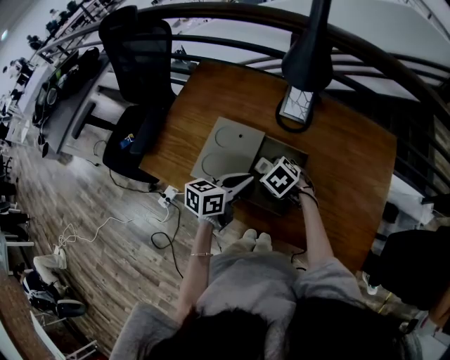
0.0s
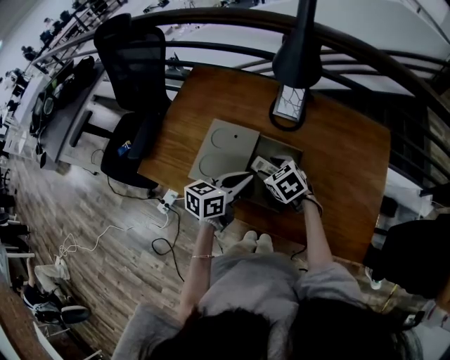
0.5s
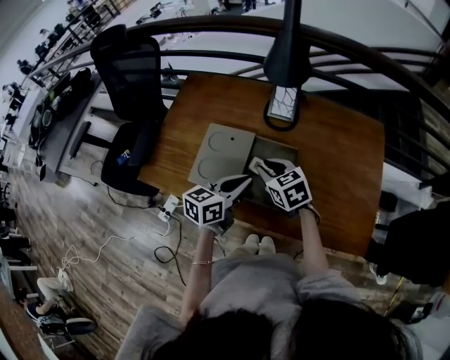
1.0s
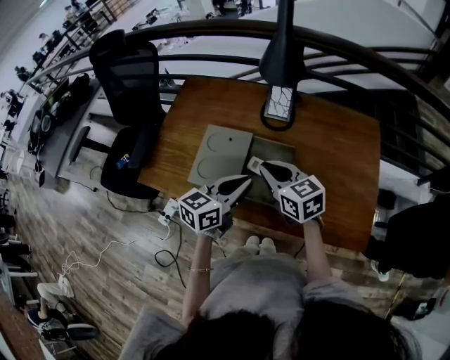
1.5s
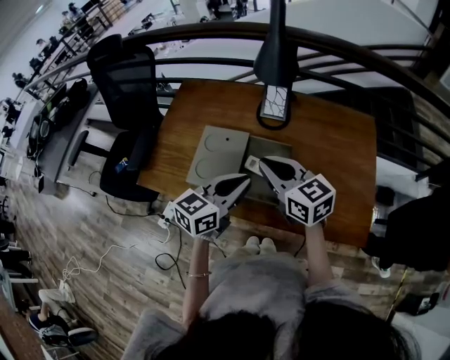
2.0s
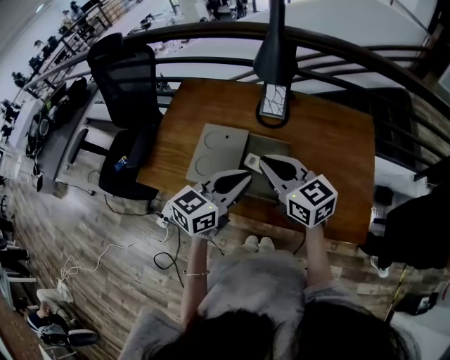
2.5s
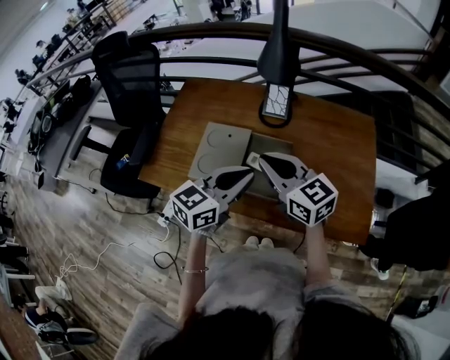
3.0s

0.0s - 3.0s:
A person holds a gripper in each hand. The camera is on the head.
0.0s - 1.5s: The left gripper is displaced upward by roughly 5 cm. The right gripper is displaced upward by some 15 cm, tips its fingers upward by approximately 40 degrees, and closes.
1.5s - 3.0s: Both grippers travel together upward, about 5 cm.

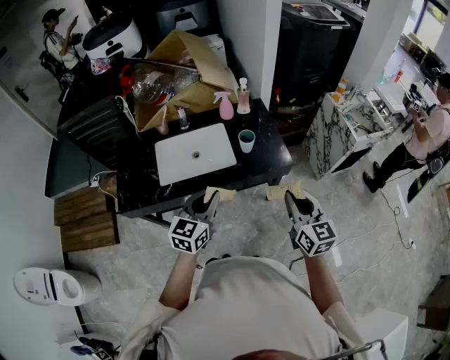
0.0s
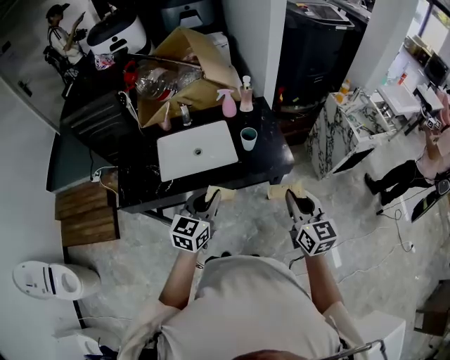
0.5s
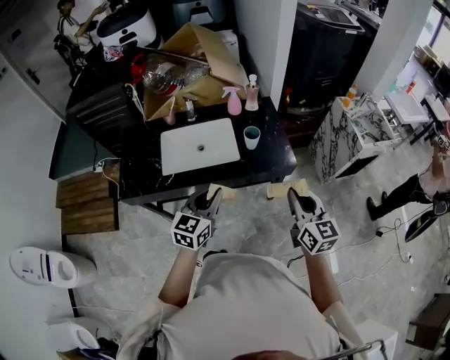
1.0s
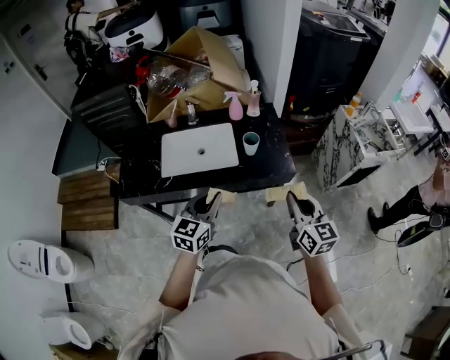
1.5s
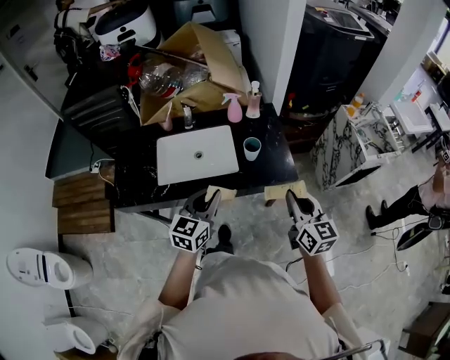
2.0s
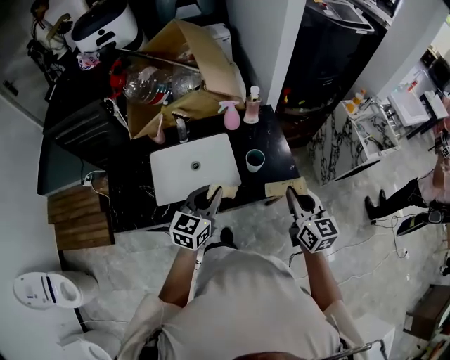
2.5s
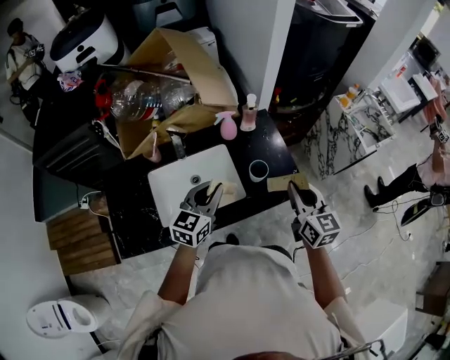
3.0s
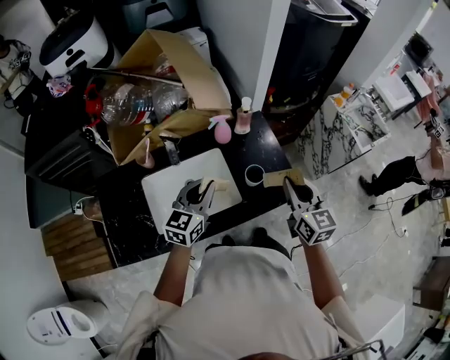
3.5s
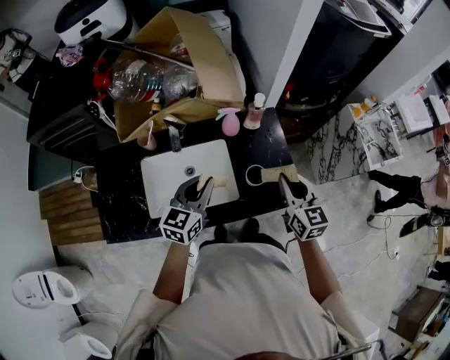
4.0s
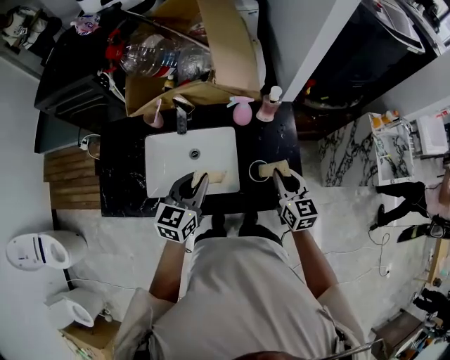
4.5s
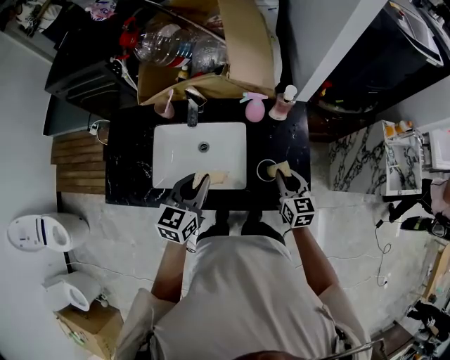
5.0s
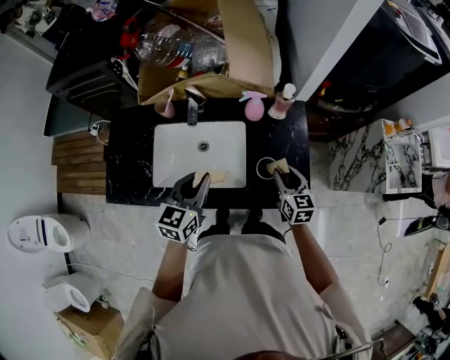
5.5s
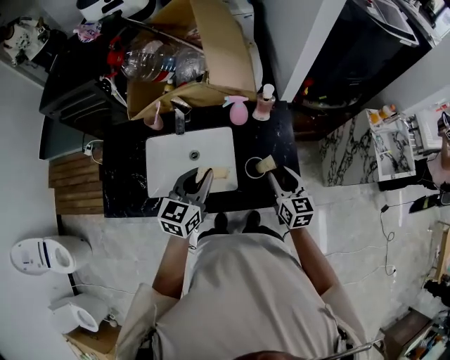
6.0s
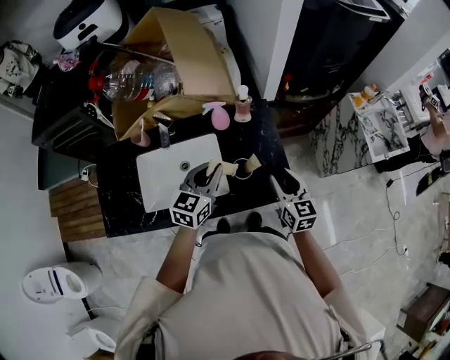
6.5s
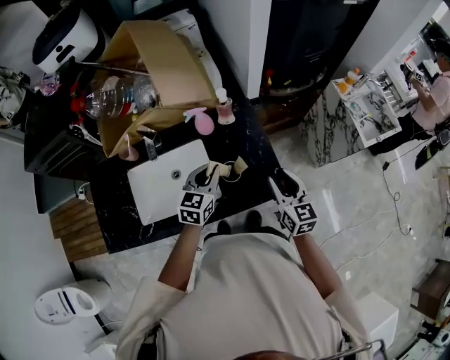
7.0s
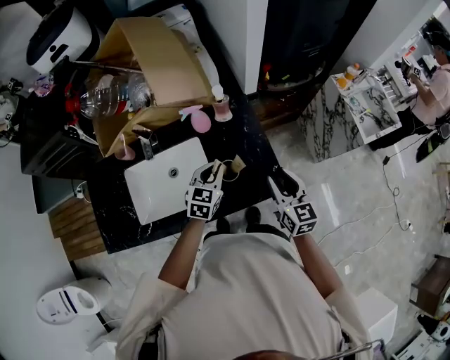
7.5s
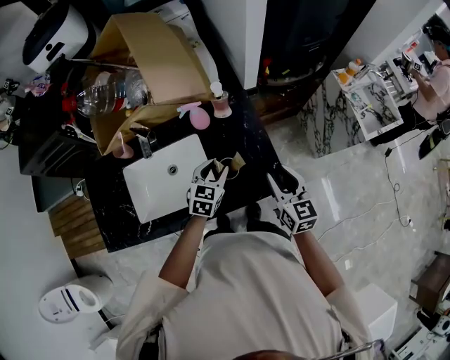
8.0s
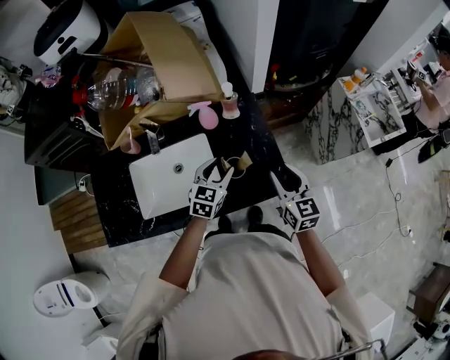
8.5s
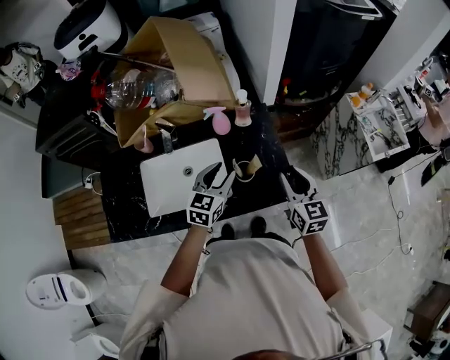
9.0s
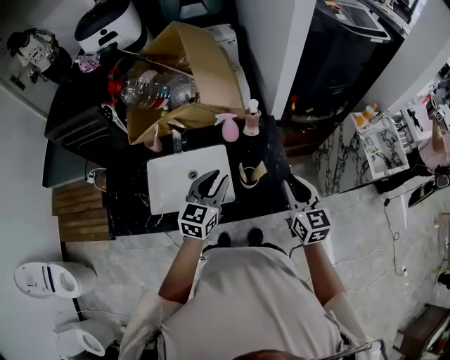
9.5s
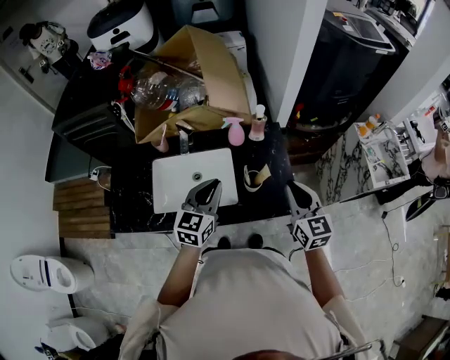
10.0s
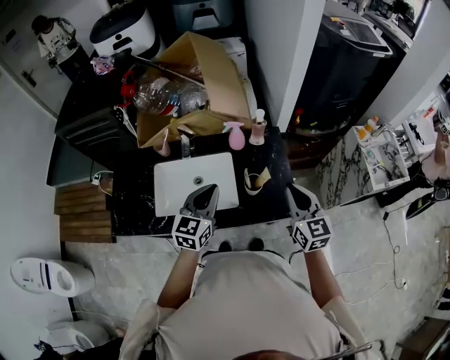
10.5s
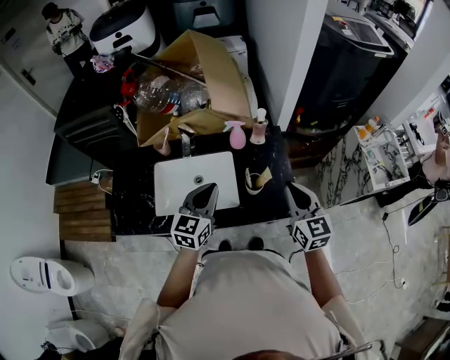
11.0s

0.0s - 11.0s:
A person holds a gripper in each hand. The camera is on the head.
0.0s - 2.0s: Both grippers travel together forward, some 5 cm.
2.0s - 3.5s: The right gripper is displaced forward and to the left by approximately 20 cm. Meanwhile the left gripper moves forward, roughly 20 cm.
3.5s - 5.5s: The right gripper heads downward and forward, covering roughly 20 cm, turns by approximately 20 degrees, and opens. Meanwhile the left gripper moves some 5 cm, and turns by some 20 degrees.
5.5s - 7.5s: The left gripper moves to the right, downward and forward, approximately 20 cm, and swivels some 20 degrees. The right gripper travels to the right and upward by about 15 cm.
7.5s - 9.0s: The left gripper is displaced upward by about 5 cm, and opens up.
9.0s - 11.0s: The left gripper moves upward, to the left and backward, roughly 15 cm, and closes up; the right gripper moves upward, roughly 5 cm, and closes.

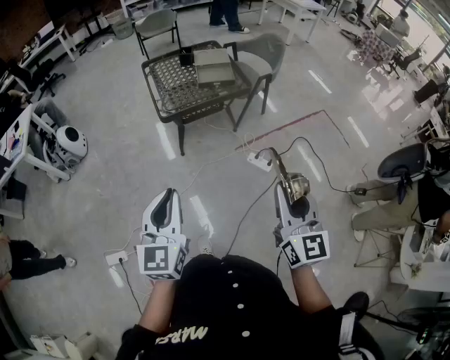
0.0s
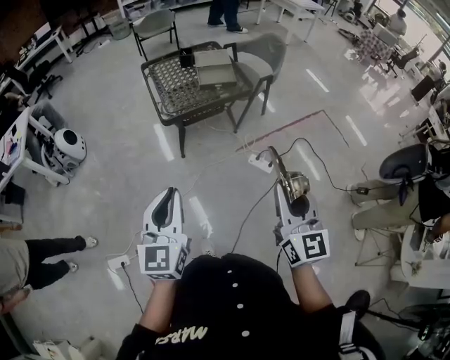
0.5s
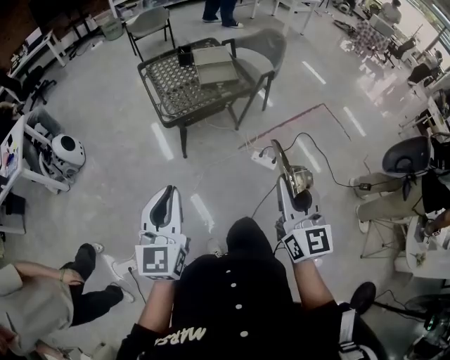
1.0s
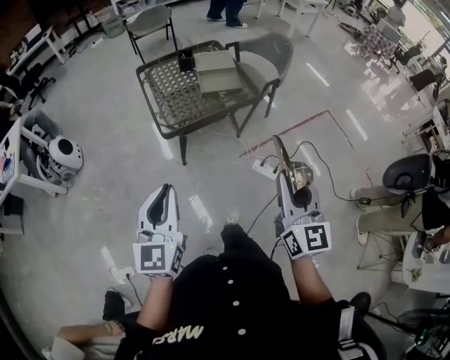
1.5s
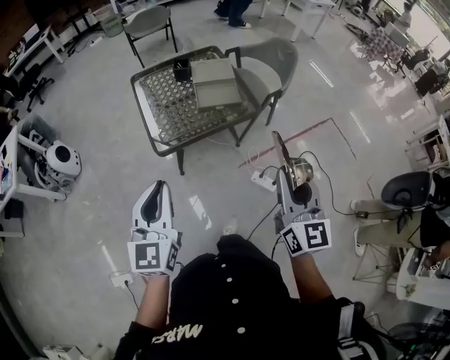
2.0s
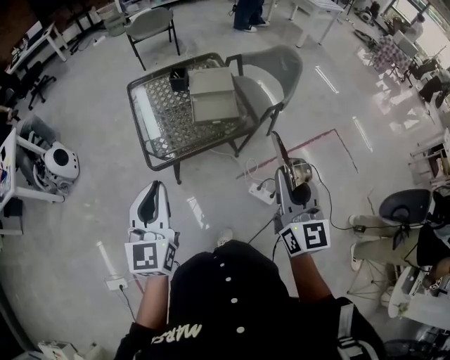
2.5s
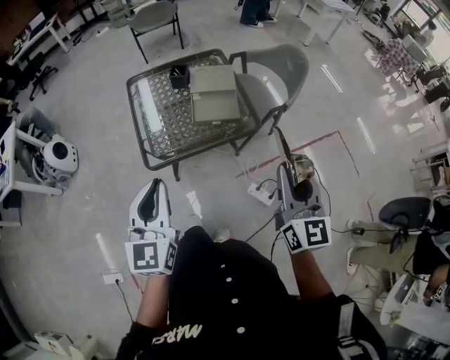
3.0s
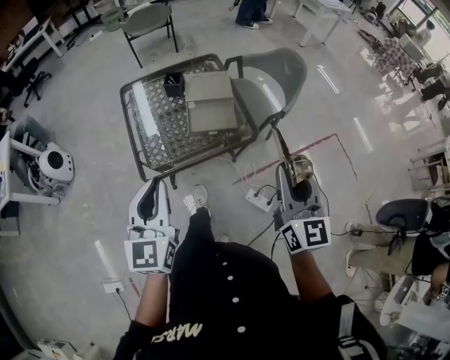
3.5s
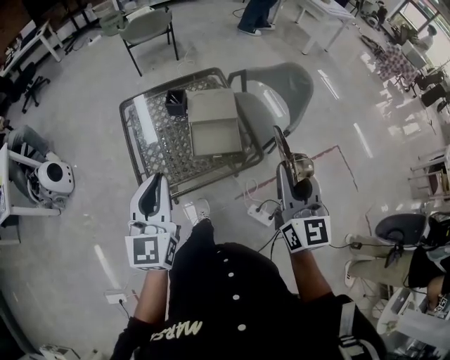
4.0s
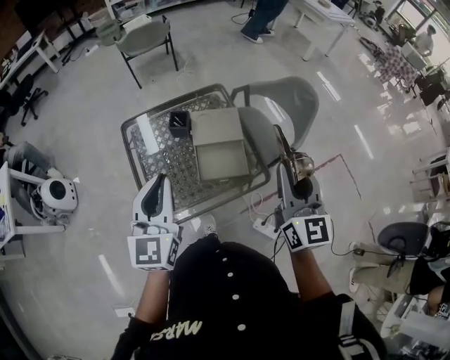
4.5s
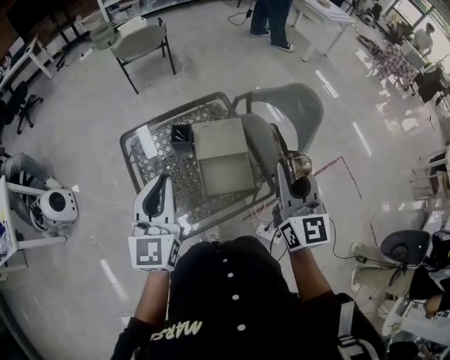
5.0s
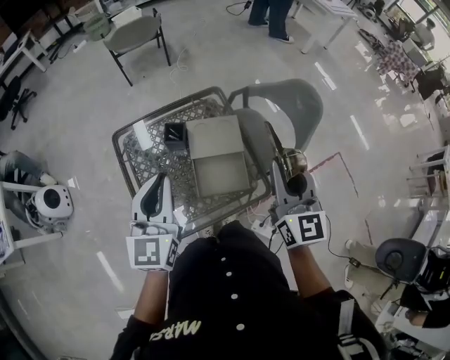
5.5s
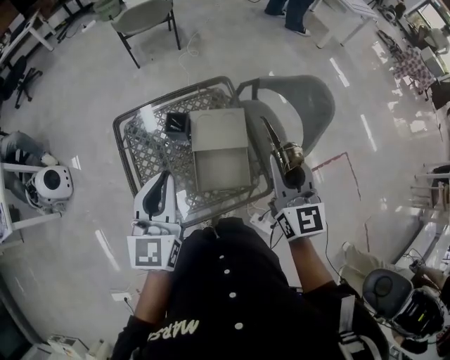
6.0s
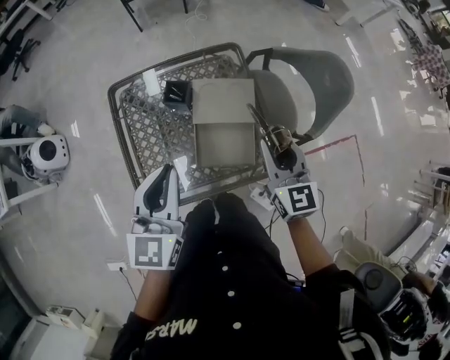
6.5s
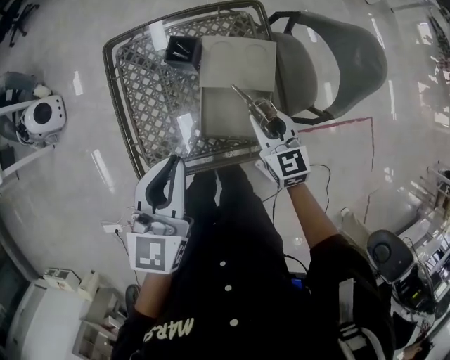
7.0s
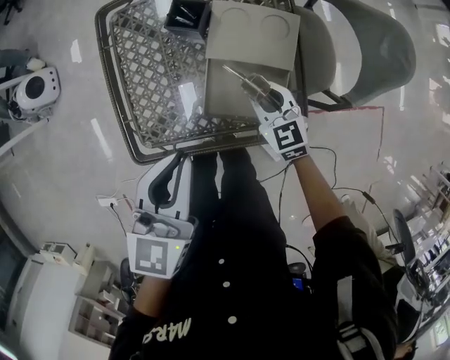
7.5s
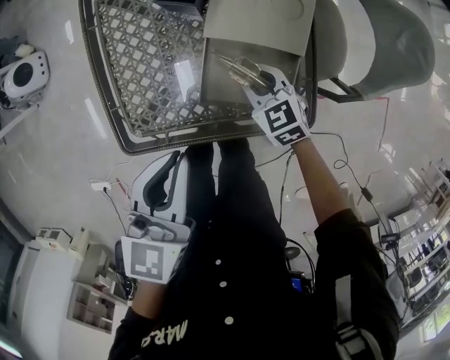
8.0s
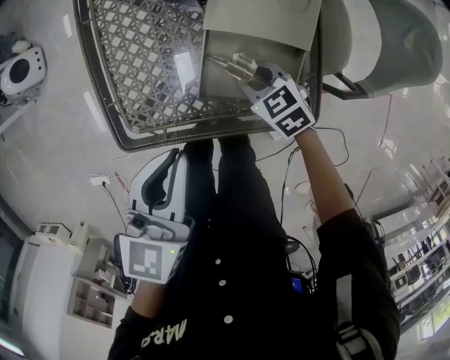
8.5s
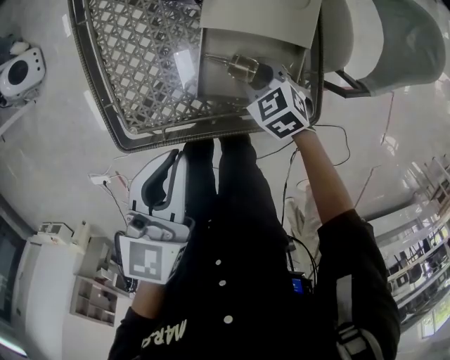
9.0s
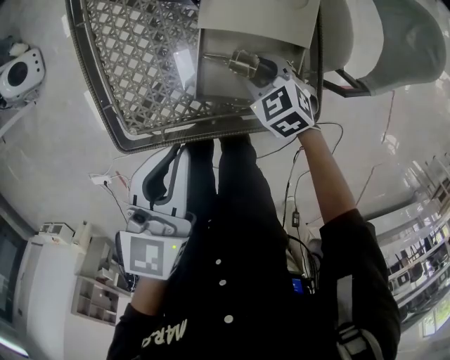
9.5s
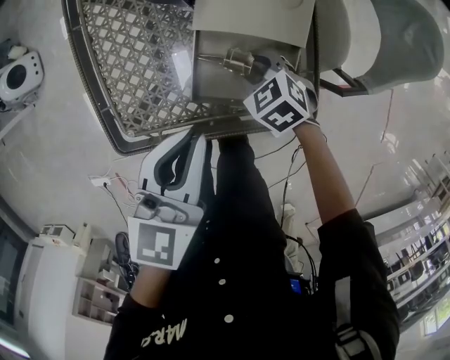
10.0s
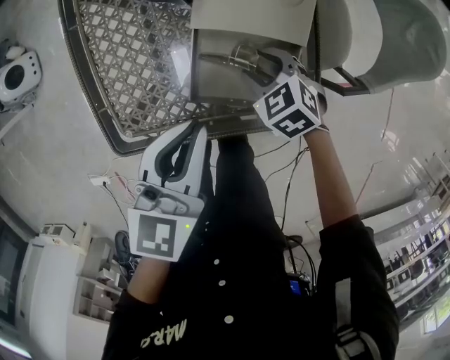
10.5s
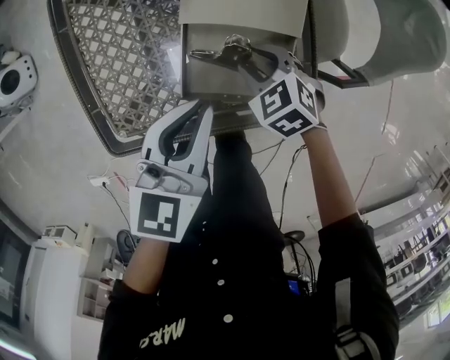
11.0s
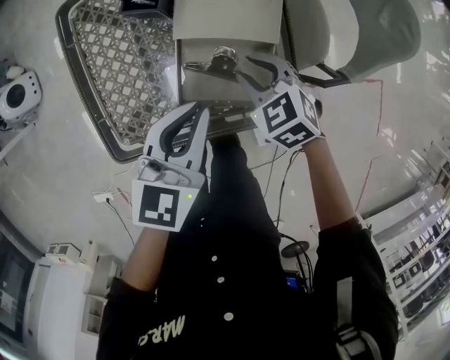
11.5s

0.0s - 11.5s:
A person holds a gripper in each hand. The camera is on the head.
0.0s - 2.0s: Both grippers travel together forward, some 30 cm.
2.0s - 4.0s: Both grippers move forward, approximately 30 cm.
4.0s - 6.0s: The grippers both shift forward by about 25 cm.
6.0s - 7.5s: The right gripper goes about 35 cm downward, and swivels roughly 40 degrees, while the left gripper is displaced downward by some 15 cm, and swivels some 20 degrees.
7.5s - 9.5s: The grippers both shift downward by roughly 10 cm. The right gripper rotates roughly 20 degrees.
9.5s - 11.5s: The left gripper goes roughly 10 cm to the right, while the right gripper moves upward, some 10 cm.

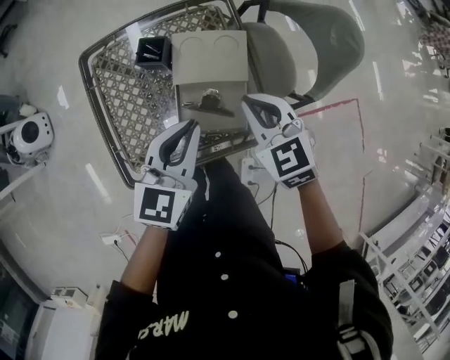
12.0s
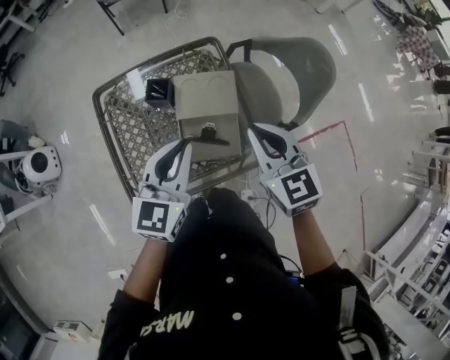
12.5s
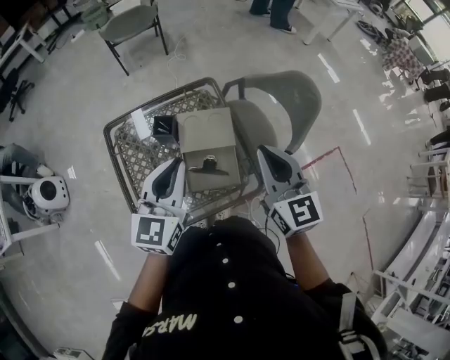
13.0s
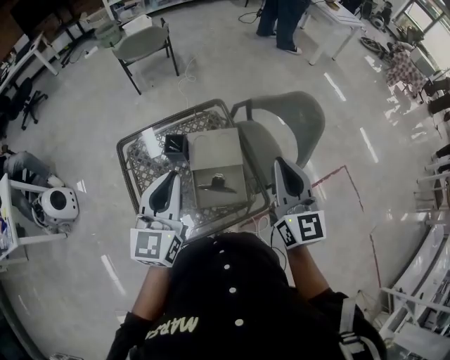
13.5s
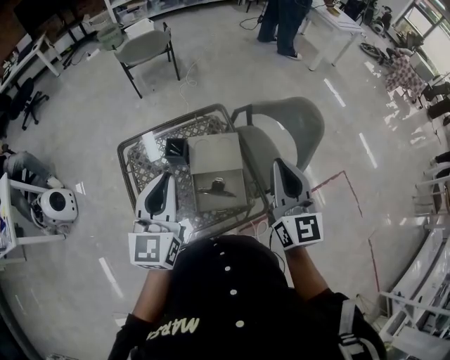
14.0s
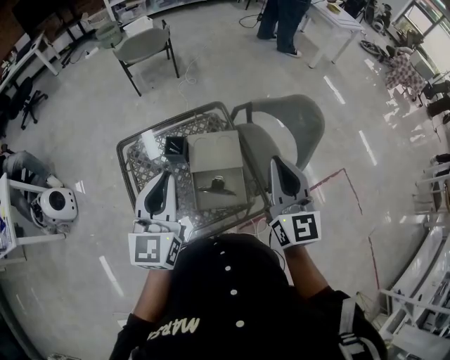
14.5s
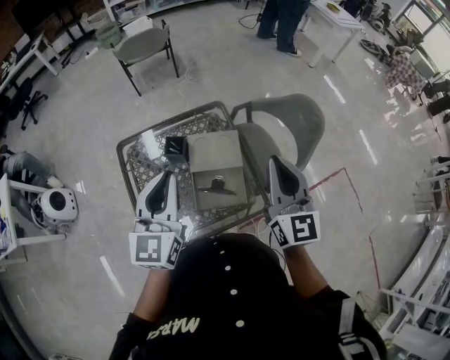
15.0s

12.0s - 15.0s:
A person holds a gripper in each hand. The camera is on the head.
12.0s - 13.5s: The left gripper is displaced upward and to the left by some 20 cm; the right gripper shifts some 20 cm upward, and points its fingers about 40 degrees further upward.
13.5s - 15.0s: The grippers make only small movements.
